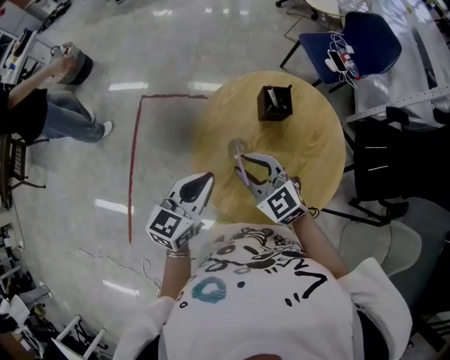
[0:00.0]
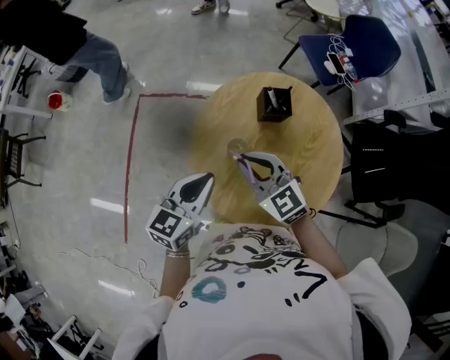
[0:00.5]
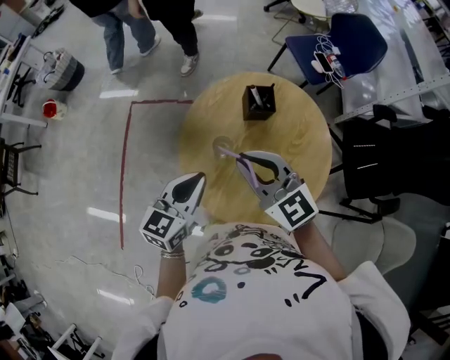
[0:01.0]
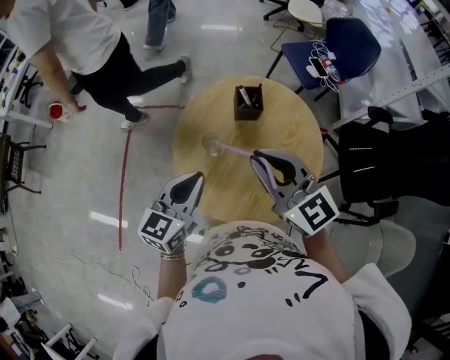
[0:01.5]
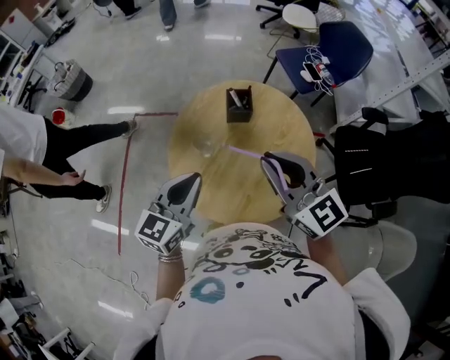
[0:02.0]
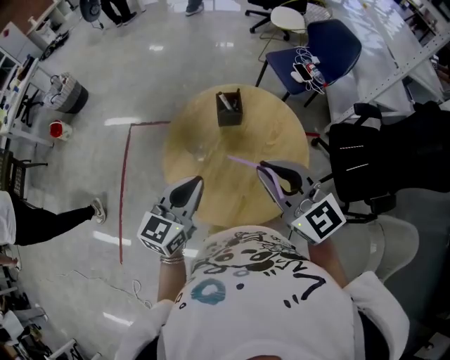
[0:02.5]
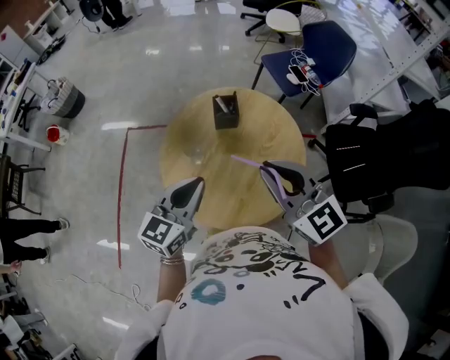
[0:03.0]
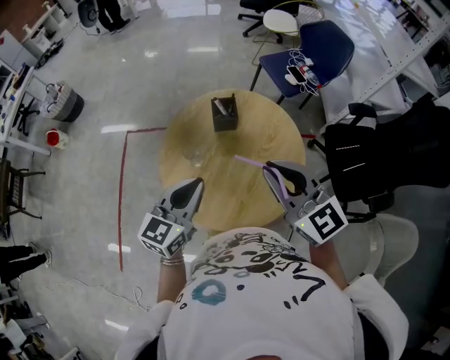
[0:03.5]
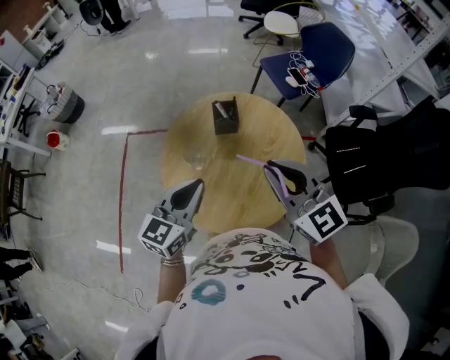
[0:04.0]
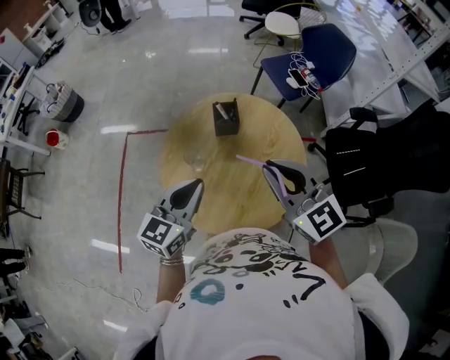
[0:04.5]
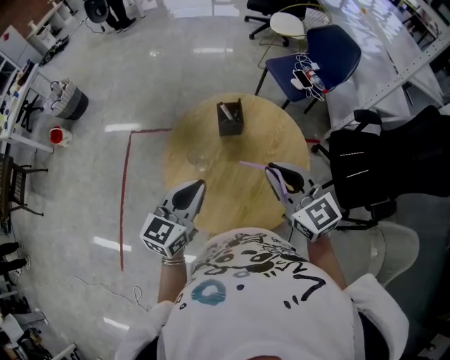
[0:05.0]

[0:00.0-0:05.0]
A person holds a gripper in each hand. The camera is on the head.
0:00.0 to 0:02.5: The left gripper heads to the right, backward and upward, covering some 15 cm; the right gripper shifts roughly 25 cm upward, to the right and backward, and turns by approximately 20 degrees.
0:02.5 to 0:05.0: The right gripper shifts about 5 cm downward.

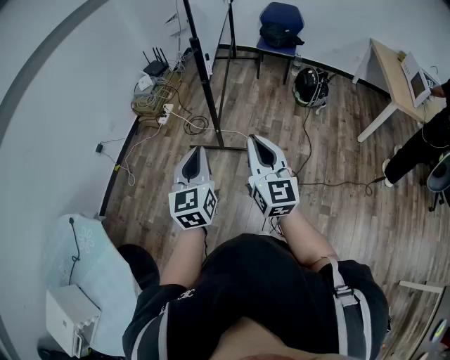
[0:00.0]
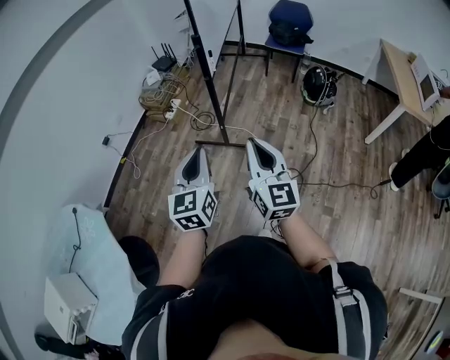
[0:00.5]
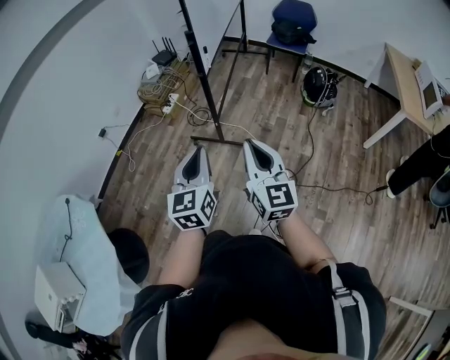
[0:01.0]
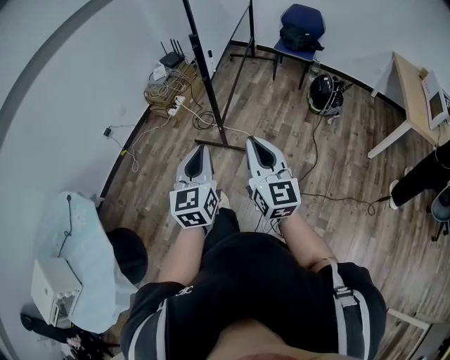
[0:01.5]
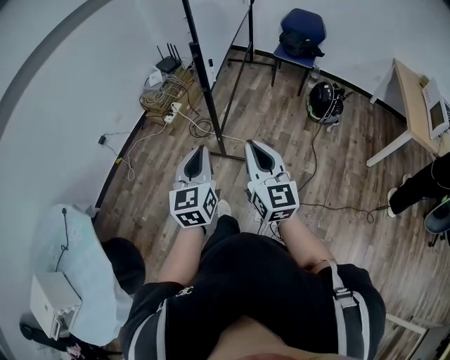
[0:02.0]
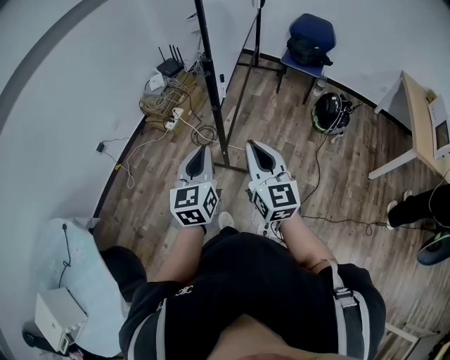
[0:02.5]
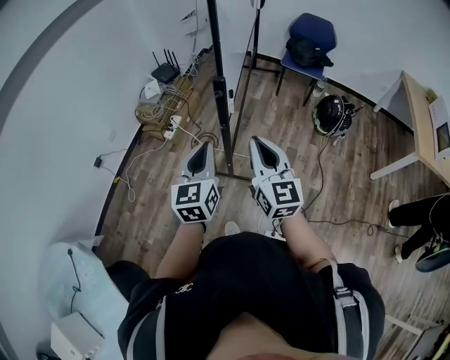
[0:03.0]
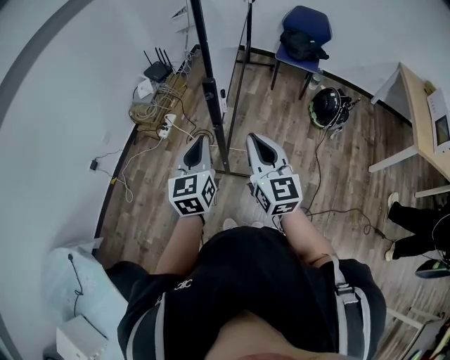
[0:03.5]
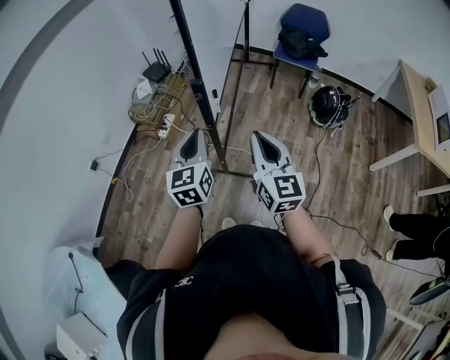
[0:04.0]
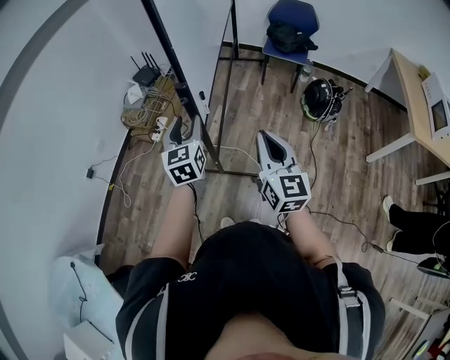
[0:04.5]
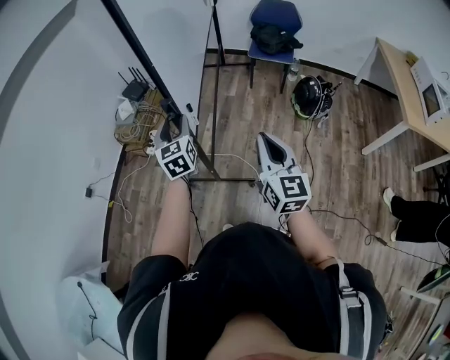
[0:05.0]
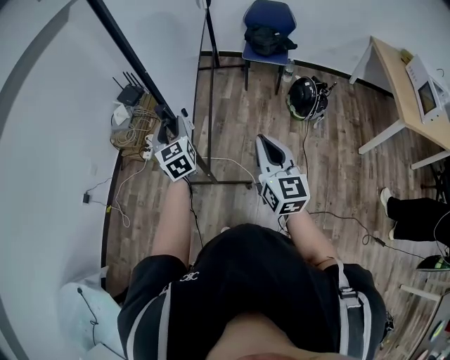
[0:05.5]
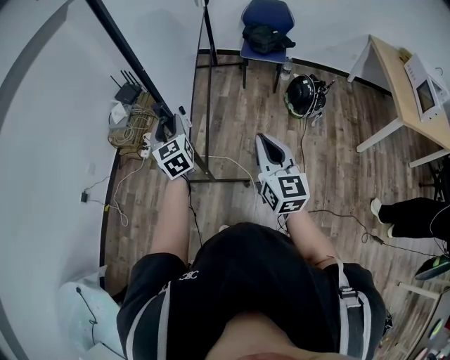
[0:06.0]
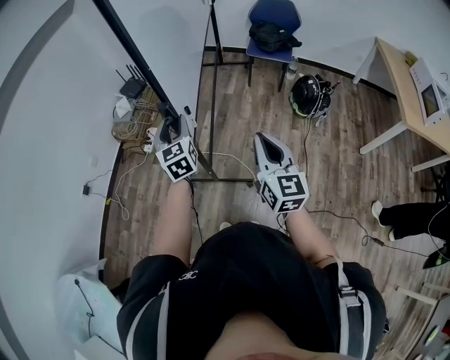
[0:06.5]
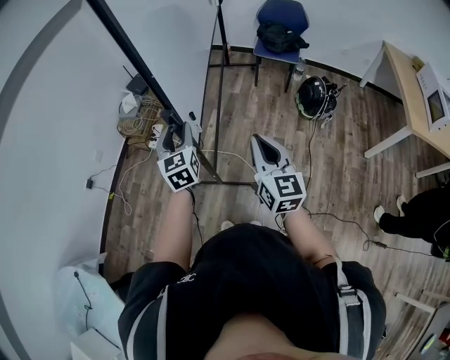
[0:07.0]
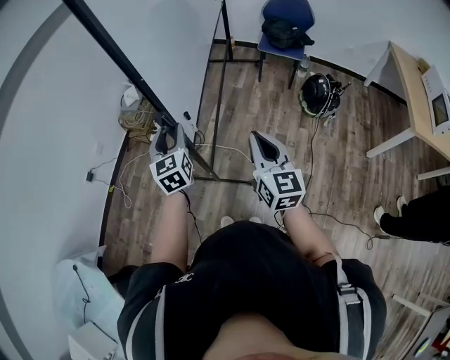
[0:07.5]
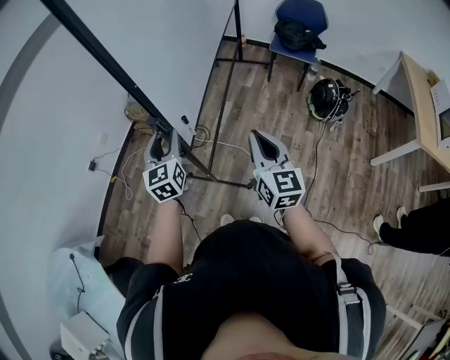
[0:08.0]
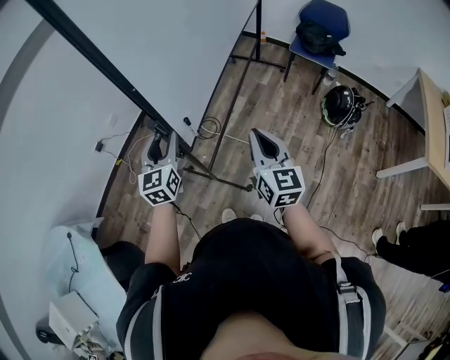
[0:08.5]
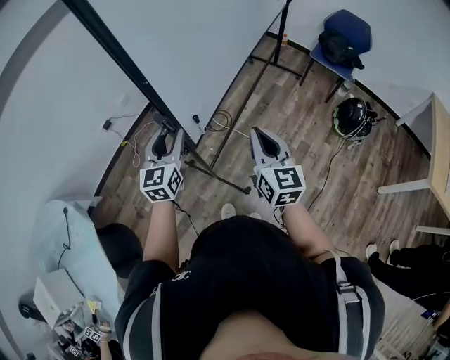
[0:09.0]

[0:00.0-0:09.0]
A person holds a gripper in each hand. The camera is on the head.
0:00.0 to 0:02.0: The left gripper goes some 10 cm to the right and forward; the right gripper moves forward and to the right, some 10 cm.
0:02.0 to 0:04.5: The two grippers go about 30 cm forward. The left gripper opens.
0:07.0 to 0:09.0: The right gripper travels to the left by approximately 10 cm; the left gripper is displaced to the left and backward by about 20 cm.

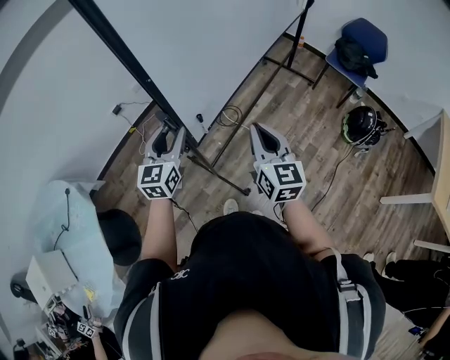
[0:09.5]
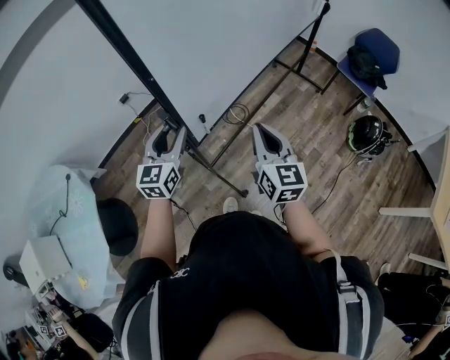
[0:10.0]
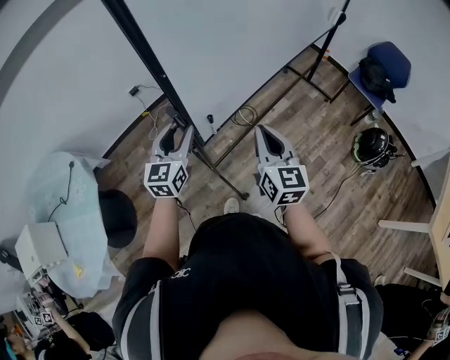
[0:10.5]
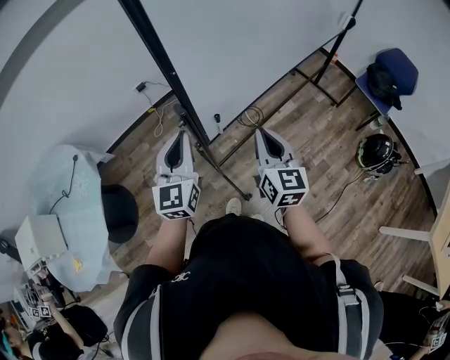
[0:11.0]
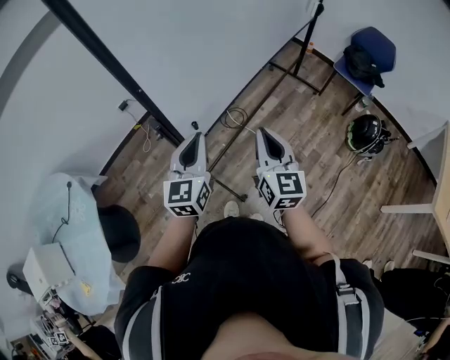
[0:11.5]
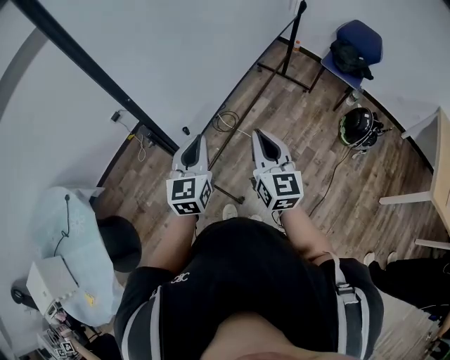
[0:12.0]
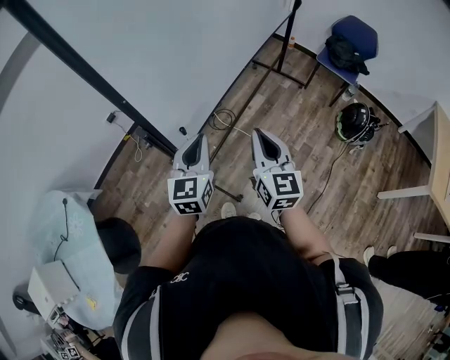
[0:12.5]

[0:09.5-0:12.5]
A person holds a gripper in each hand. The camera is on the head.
0:09.5 to 0:11.0: The right gripper moves to the left, roughly 5 cm. The left gripper shifts roughly 10 cm backward and upward, and closes.
0:11.0 to 0:12.5: The right gripper moves to the right, about 10 cm, while the left gripper goes roughly 15 cm to the right, and swivels some 20 degrees.

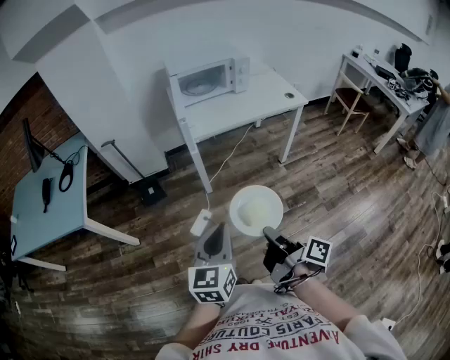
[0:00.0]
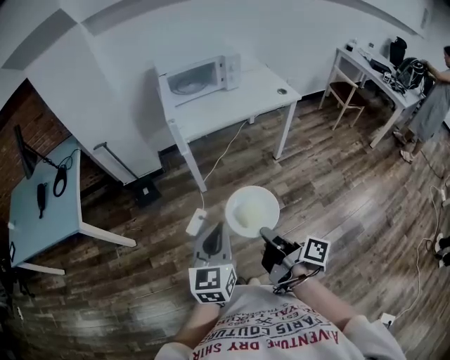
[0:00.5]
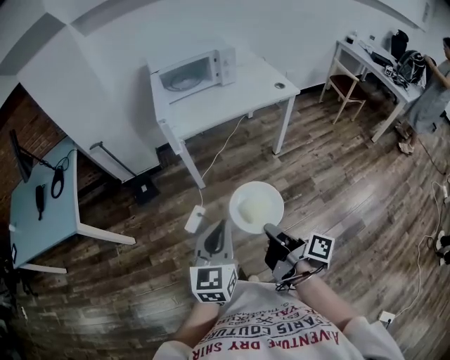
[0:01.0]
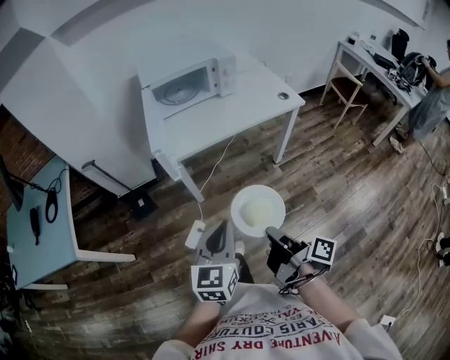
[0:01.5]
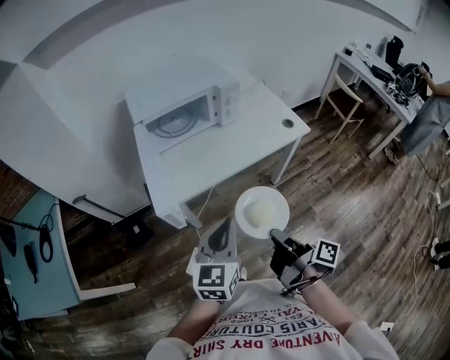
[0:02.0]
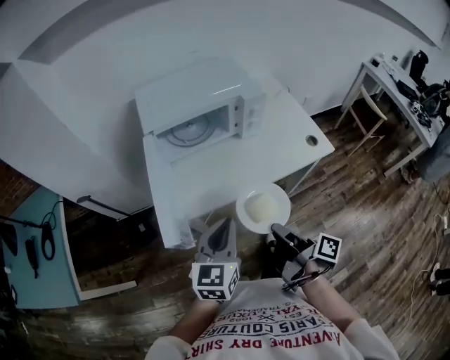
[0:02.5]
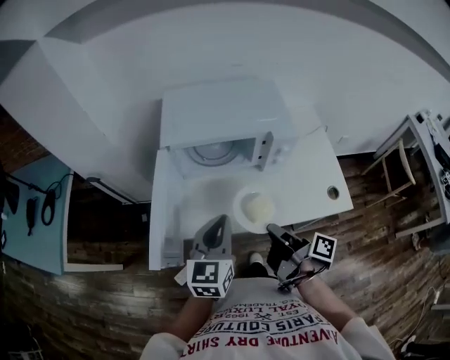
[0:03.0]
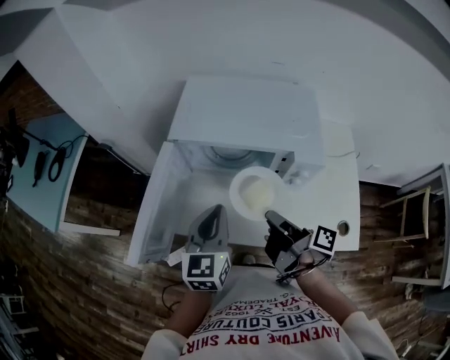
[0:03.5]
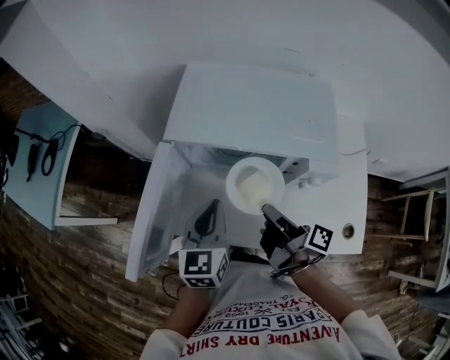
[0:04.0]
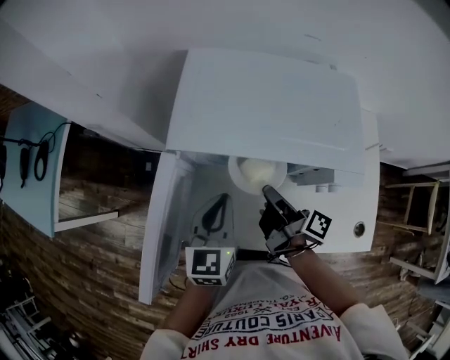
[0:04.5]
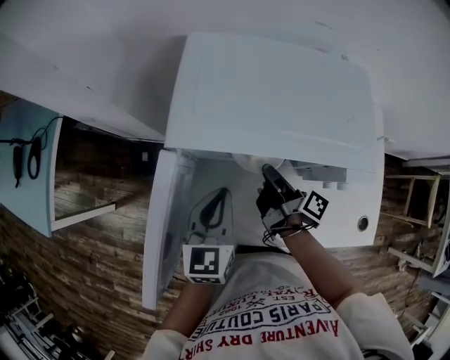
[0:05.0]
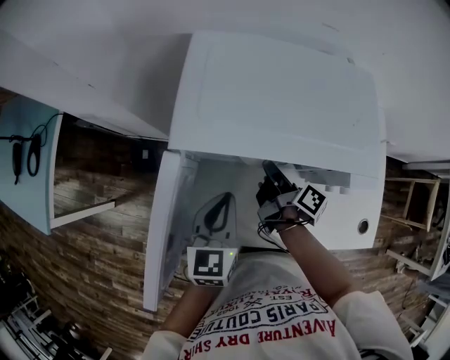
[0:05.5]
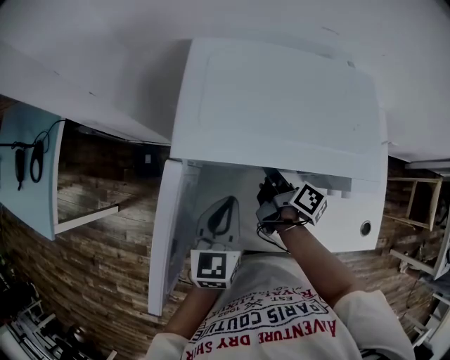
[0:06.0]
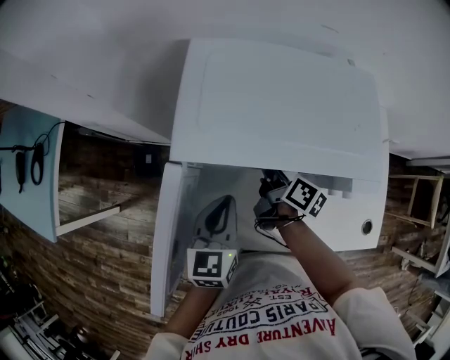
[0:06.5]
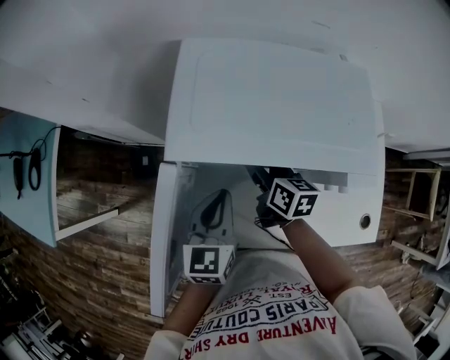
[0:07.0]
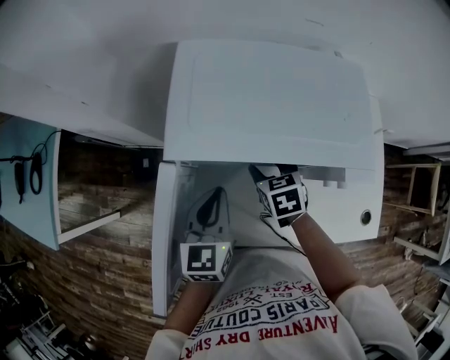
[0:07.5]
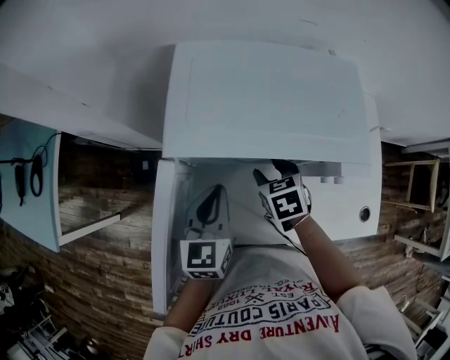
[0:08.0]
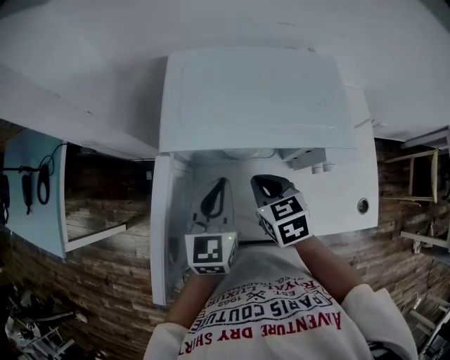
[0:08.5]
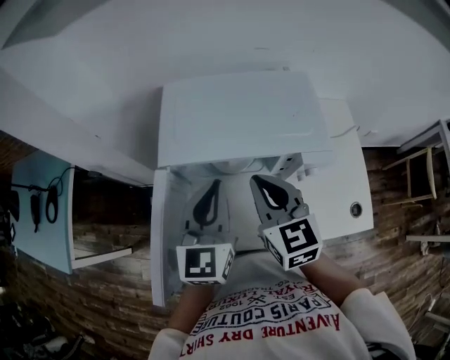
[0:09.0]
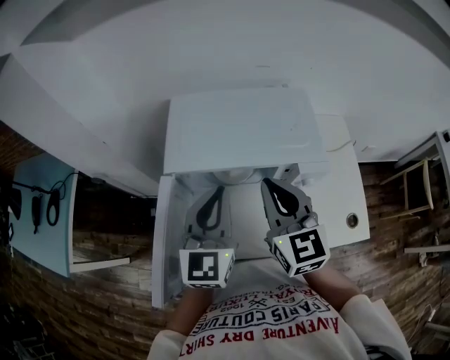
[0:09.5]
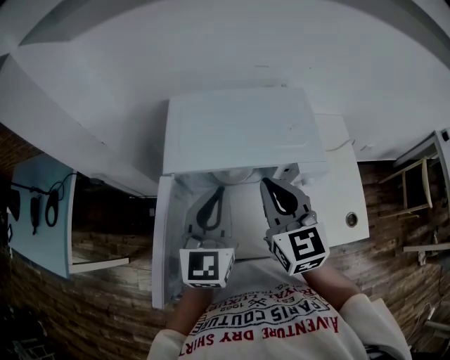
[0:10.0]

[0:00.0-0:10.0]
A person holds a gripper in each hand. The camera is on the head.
0:00.0 to 0:02.0: The left gripper moves about 35 cm.
0:02.0 to 0:04.0: The left gripper changes place by some 35 cm, and swivels approximately 40 degrees.
0:04.0 to 0:06.0: The left gripper shifts by approximately 10 cm.
0:08.0 to 0:10.0: The left gripper heads upward, covering some 15 cm, and swivels approximately 20 degrees.
